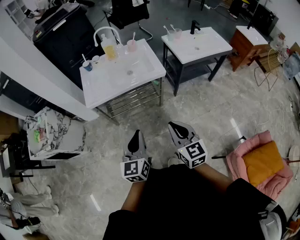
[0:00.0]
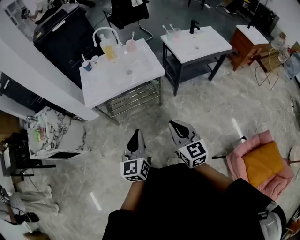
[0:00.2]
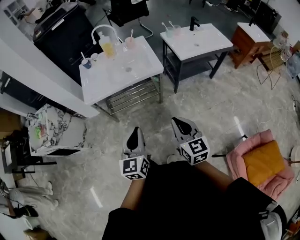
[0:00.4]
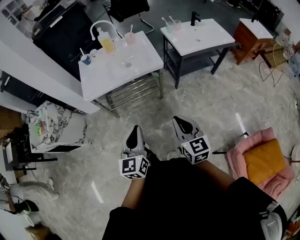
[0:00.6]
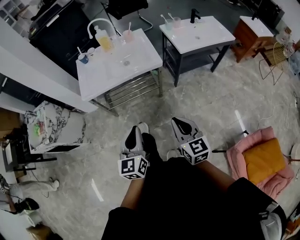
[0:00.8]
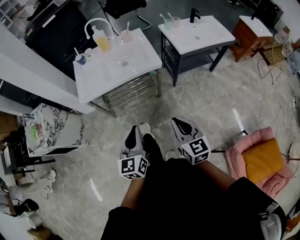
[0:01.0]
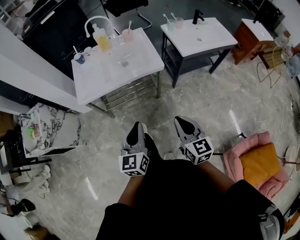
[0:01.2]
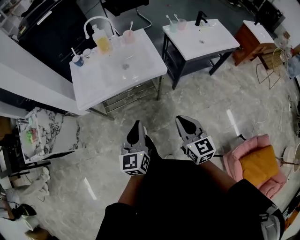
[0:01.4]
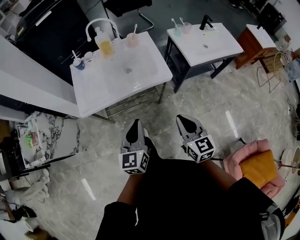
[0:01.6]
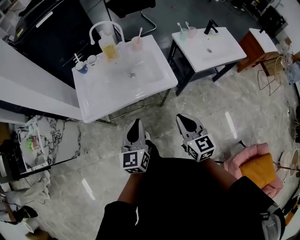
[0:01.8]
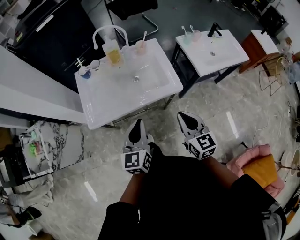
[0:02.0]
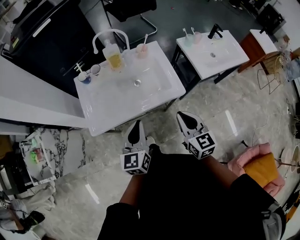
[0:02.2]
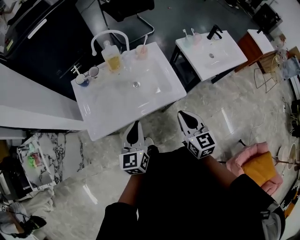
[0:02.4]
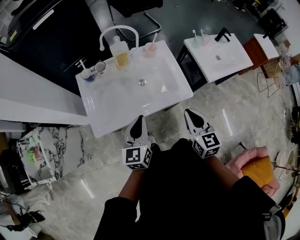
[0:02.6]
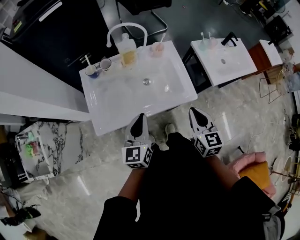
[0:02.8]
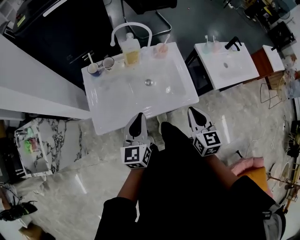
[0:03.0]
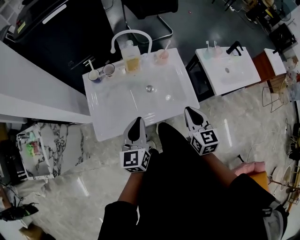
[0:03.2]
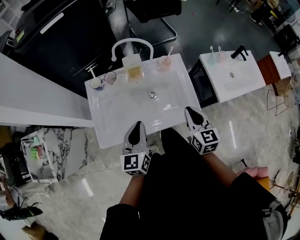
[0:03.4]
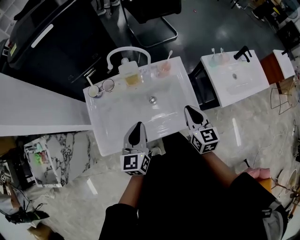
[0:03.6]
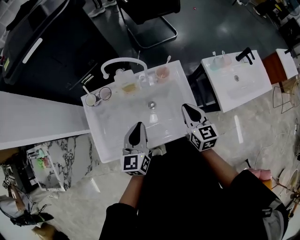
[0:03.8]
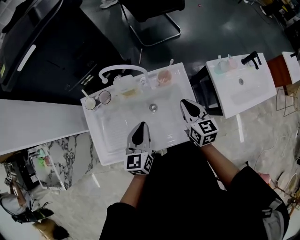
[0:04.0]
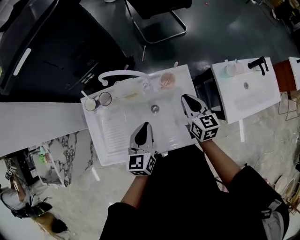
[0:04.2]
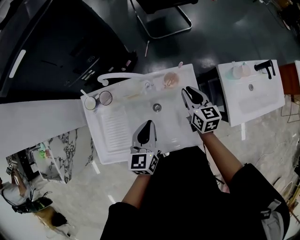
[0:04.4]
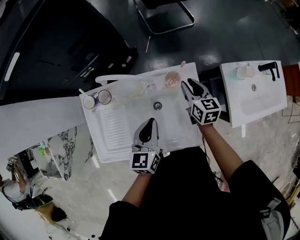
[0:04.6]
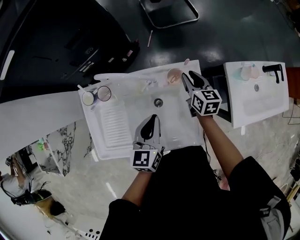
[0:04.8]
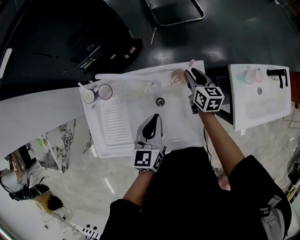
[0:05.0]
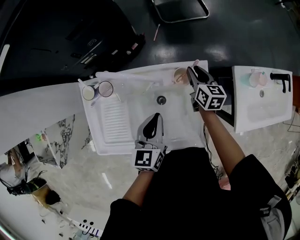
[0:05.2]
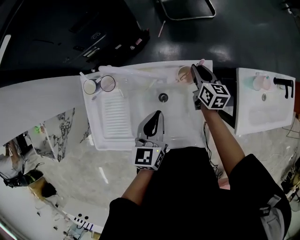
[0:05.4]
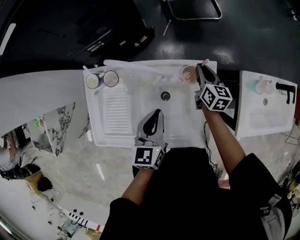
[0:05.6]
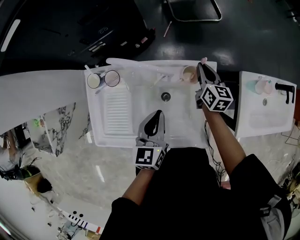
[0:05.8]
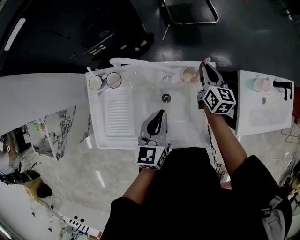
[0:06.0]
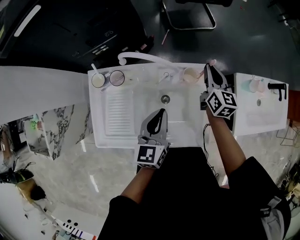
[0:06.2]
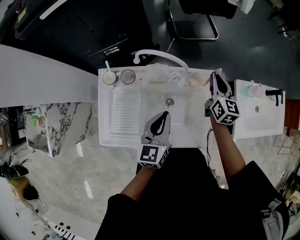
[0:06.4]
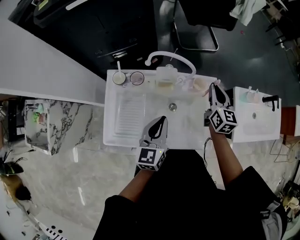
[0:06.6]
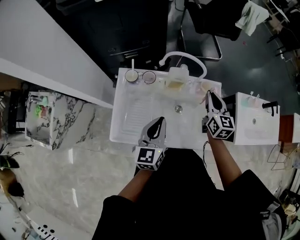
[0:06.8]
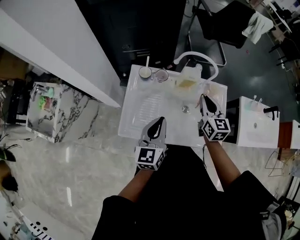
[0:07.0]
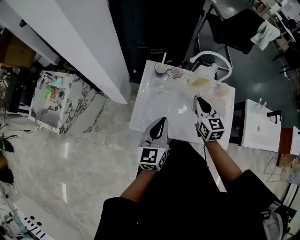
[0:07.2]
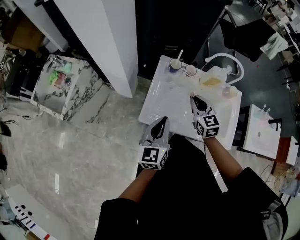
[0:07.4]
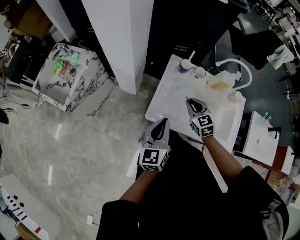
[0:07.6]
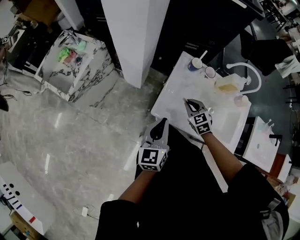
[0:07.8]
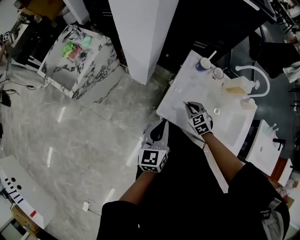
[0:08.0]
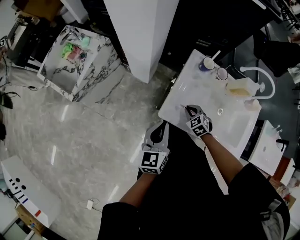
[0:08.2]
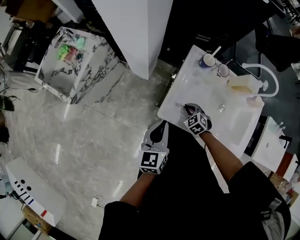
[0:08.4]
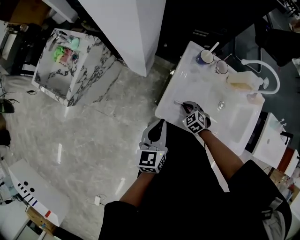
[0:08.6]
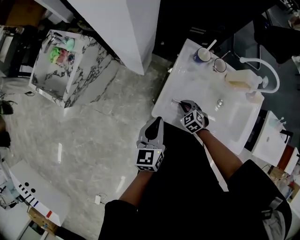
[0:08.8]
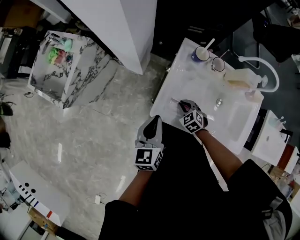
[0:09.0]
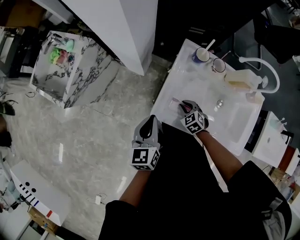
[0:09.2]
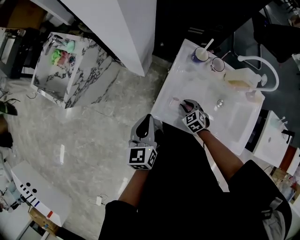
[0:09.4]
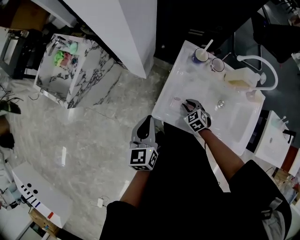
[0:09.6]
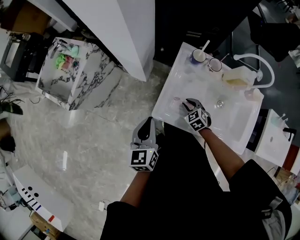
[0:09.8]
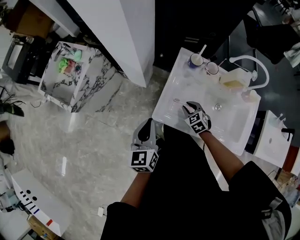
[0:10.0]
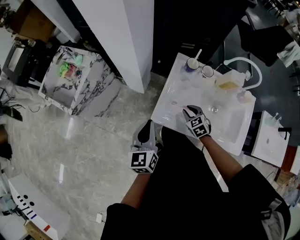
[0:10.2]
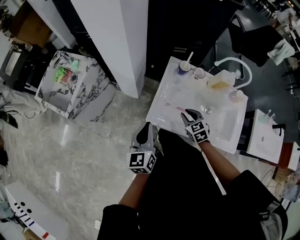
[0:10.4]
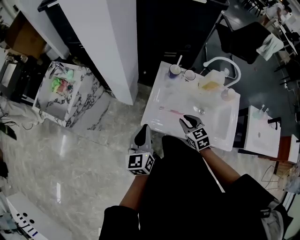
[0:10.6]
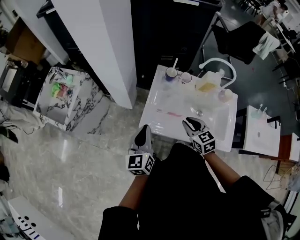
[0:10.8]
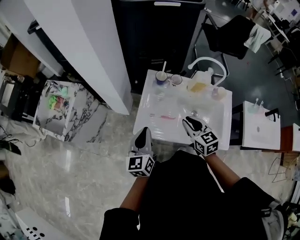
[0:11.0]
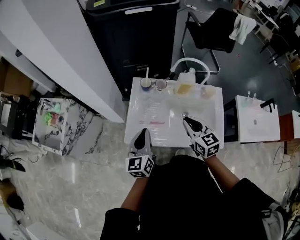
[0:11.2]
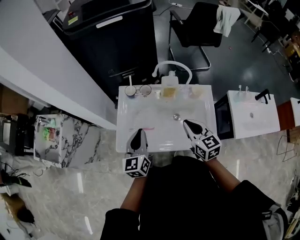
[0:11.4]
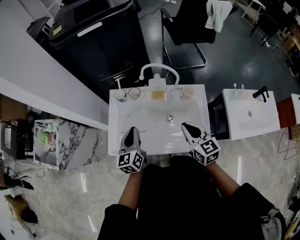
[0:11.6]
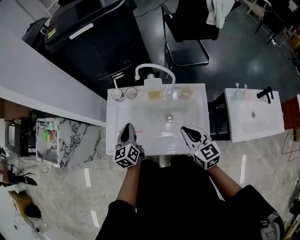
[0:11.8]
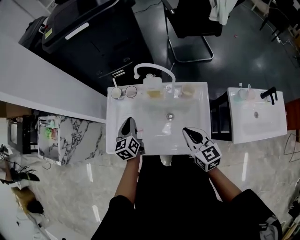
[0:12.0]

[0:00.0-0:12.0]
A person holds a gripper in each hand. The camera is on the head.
0:00.0 to 0:01.6: Both grippers travel together forward, about 20 cm.
0:01.6 to 0:03.0: The two grippers go approximately 25 cm forward and to the left.
0:03.0 to 0:04.4: The two grippers go roughly 30 cm forward.
0:04.4 to 0:06.0: The right gripper goes approximately 10 cm forward.
0:06.0 to 0:07.6: The two grippers travel together, about 50 cm. The left gripper rotates roughly 30 degrees. The right gripper rotates around the line of its fingers by about 40 degrees, counterclockwise from behind.
0:07.6 to 0:09.0: The left gripper heads downward and forward, covering roughly 10 cm, while the right gripper travels downward by some 20 cm, and turns by approximately 30 degrees.
0:09.0 to 0:10.4: The right gripper moves upward, approximately 15 cm, and changes its angle by some 20 degrees. The left gripper is displaced upward and backward by some 10 cm.
0:10.4 to 0:12.0: The left gripper goes about 35 cm to the right and forward. The right gripper goes roughly 35 cm to the right and upward, and changes its angle by about 40 degrees.

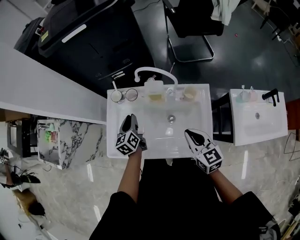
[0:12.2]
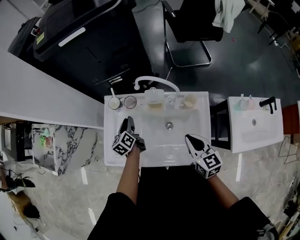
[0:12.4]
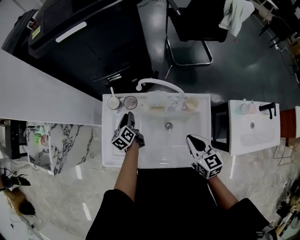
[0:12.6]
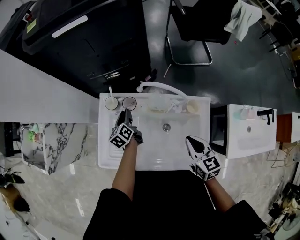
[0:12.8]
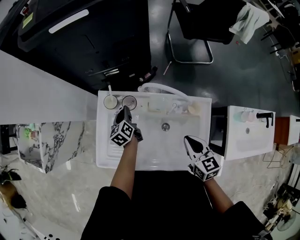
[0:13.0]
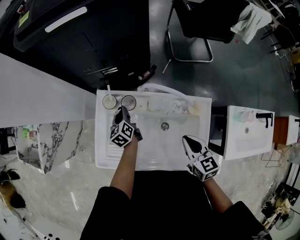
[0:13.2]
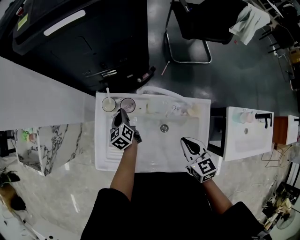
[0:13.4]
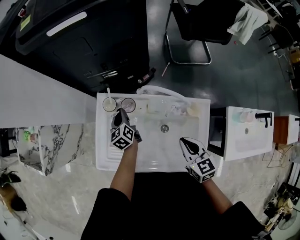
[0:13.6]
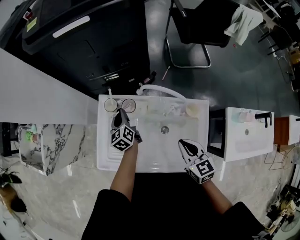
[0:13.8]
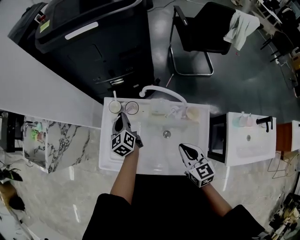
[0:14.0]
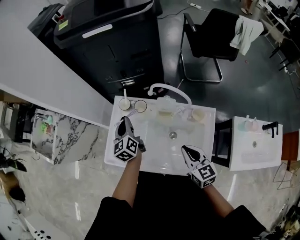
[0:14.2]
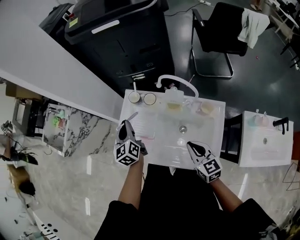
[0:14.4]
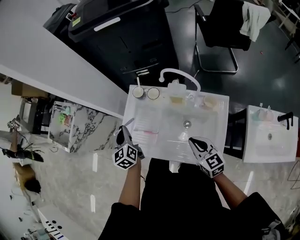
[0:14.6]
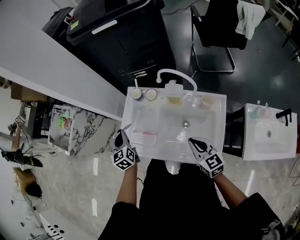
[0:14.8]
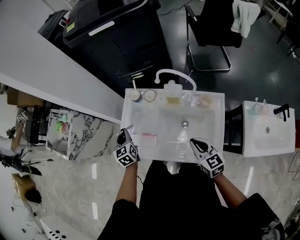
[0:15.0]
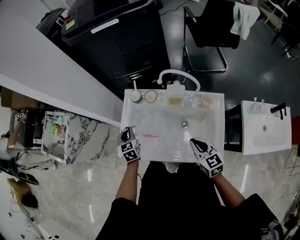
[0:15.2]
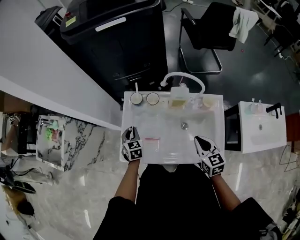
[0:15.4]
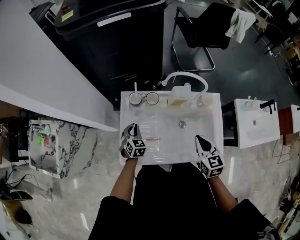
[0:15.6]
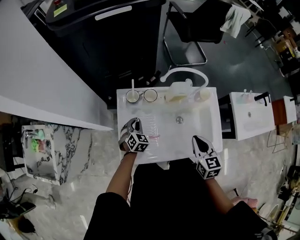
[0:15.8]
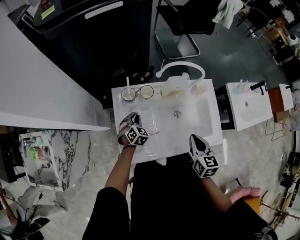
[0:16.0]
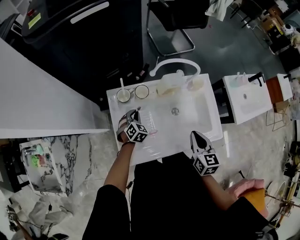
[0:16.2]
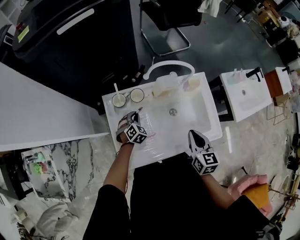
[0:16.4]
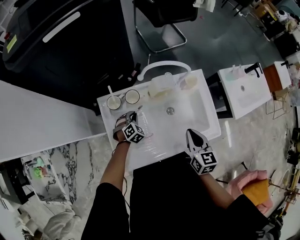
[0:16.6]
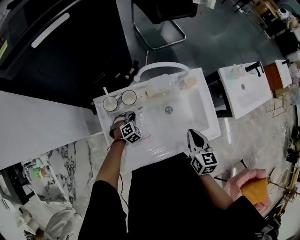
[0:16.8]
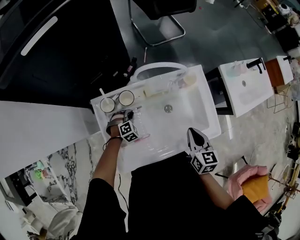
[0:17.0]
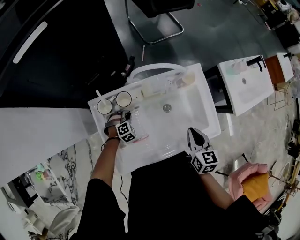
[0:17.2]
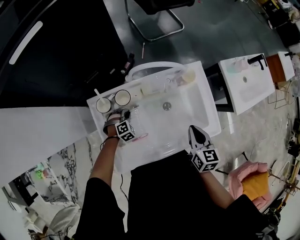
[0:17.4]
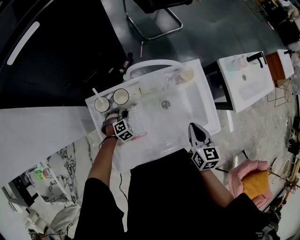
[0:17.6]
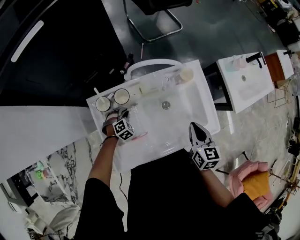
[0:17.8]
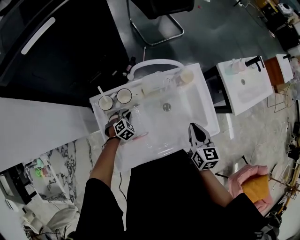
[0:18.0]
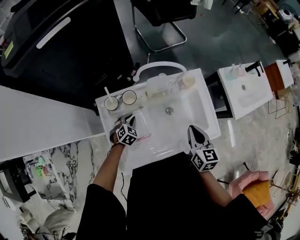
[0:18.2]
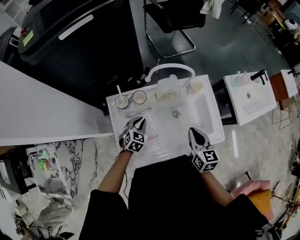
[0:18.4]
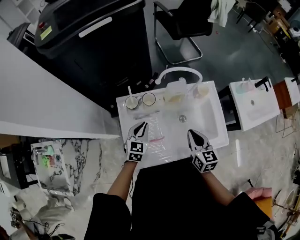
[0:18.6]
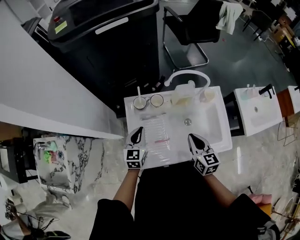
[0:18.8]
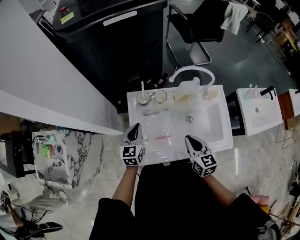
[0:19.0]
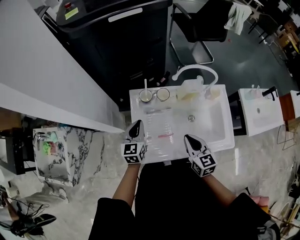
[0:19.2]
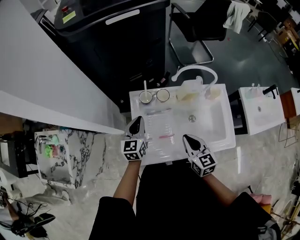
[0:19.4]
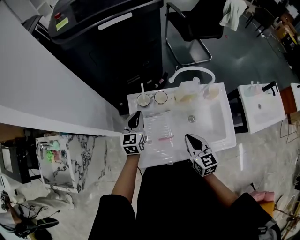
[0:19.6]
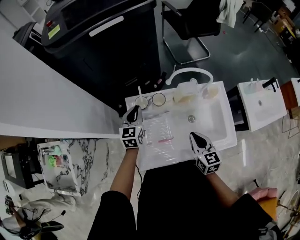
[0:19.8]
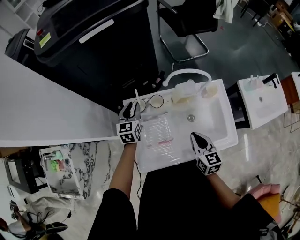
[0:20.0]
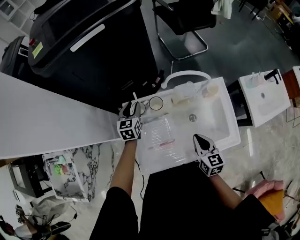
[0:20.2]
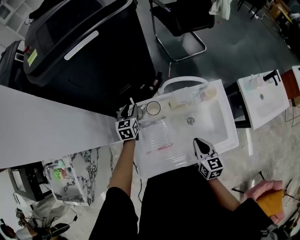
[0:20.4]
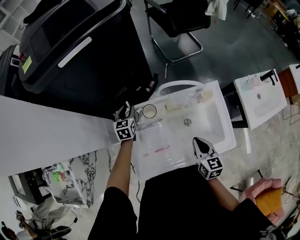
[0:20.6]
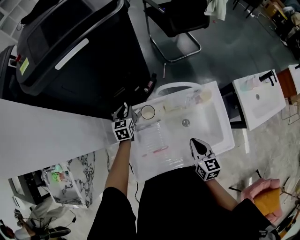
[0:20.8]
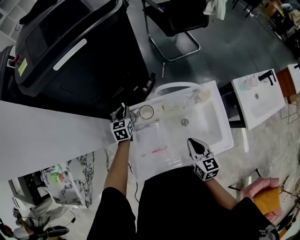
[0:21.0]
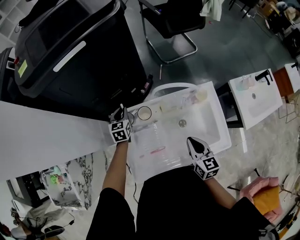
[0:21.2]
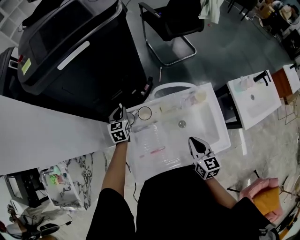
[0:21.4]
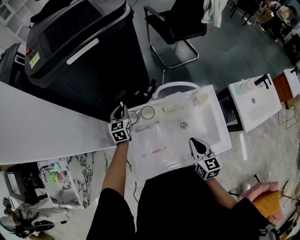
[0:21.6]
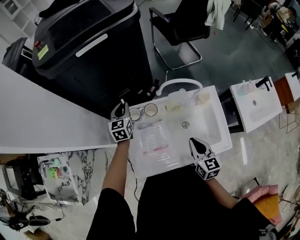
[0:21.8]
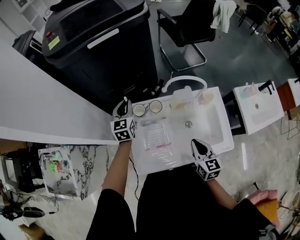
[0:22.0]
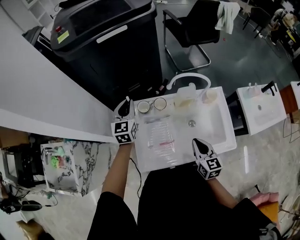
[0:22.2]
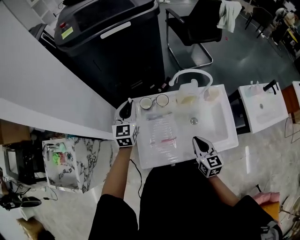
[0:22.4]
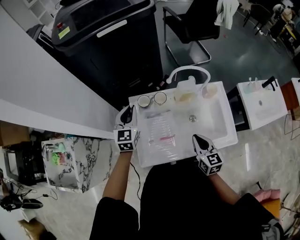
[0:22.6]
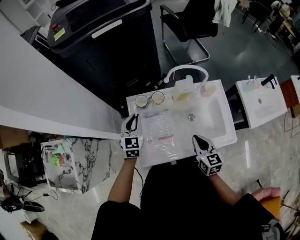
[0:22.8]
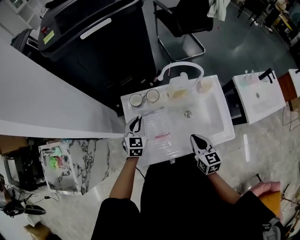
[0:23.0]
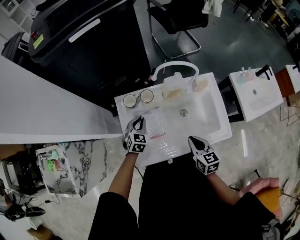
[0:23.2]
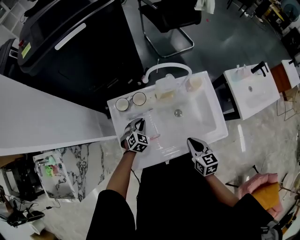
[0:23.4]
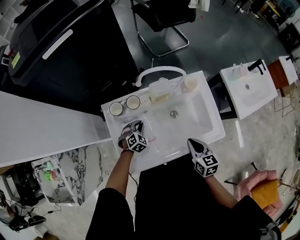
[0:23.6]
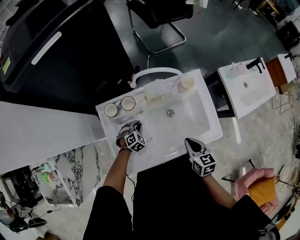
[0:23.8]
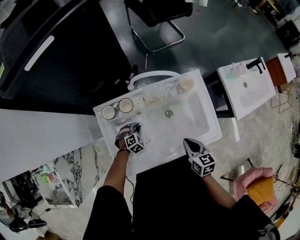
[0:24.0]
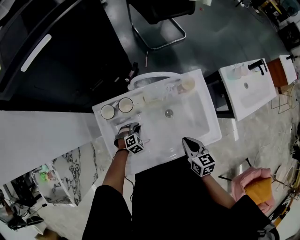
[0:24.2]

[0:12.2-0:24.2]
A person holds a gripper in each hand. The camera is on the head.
0:12.2 to 0:13.8: The right gripper moves forward, about 10 cm. Meanwhile the left gripper is displaced forward by roughly 15 cm.
0:13.8 to 0:15.2: The left gripper is displaced to the left and backward by some 20 cm, and turns by about 30 degrees. The right gripper shifts roughly 10 cm backward and to the left.
0:15.2 to 0:16.6: The left gripper changes place by some 20 cm, and twists some 60 degrees clockwise, seen from behind, while the right gripper turns by roughly 40 degrees.
0:18.2 to 0:19.8: The left gripper shifts roughly 20 cm upward and to the left, and angles its fingers upward, by roughly 30 degrees. Meanwhile the right gripper travels to the left by some 10 cm.
0:19.8 to 0:21.2: The right gripper heads to the right, covering some 5 cm. The left gripper goes roughly 15 cm forward and downward, and opens and closes again.
0:21.2 to 0:22.6: The right gripper is displaced backward by roughly 10 cm, while the left gripper is displaced upward and backward by some 20 cm.
0:22.6 to 0:24.2: The right gripper heads to the right and downward, covering approximately 10 cm, while the left gripper travels downward and to the right by roughly 40 cm, and angles its fingers downward, by approximately 50 degrees.
